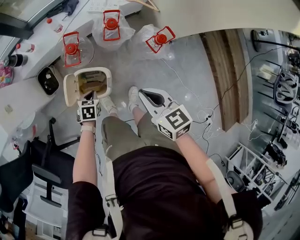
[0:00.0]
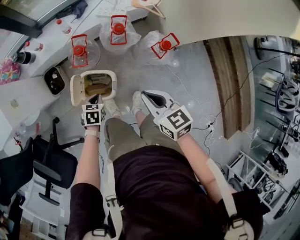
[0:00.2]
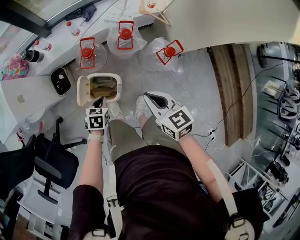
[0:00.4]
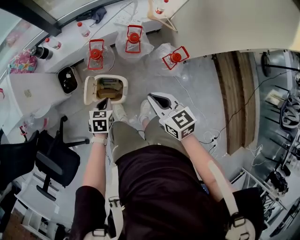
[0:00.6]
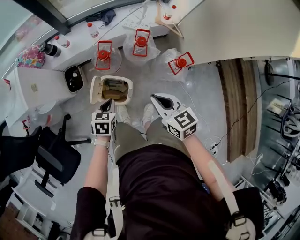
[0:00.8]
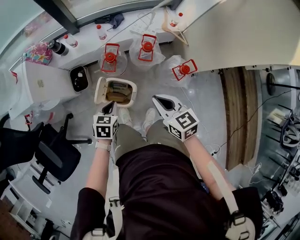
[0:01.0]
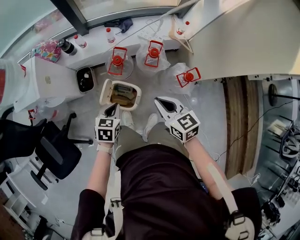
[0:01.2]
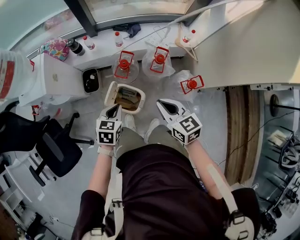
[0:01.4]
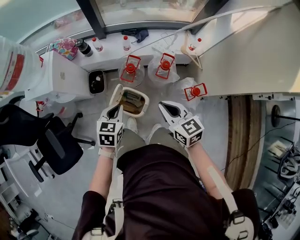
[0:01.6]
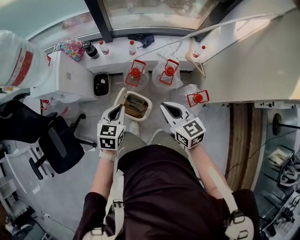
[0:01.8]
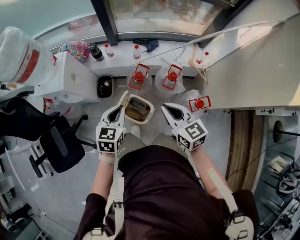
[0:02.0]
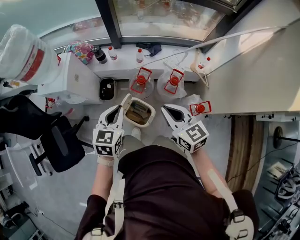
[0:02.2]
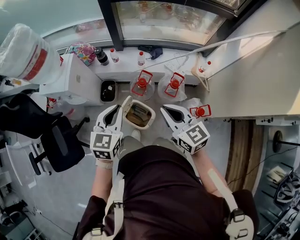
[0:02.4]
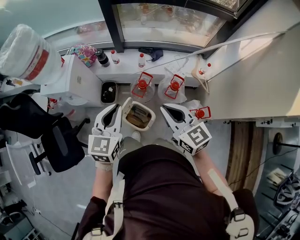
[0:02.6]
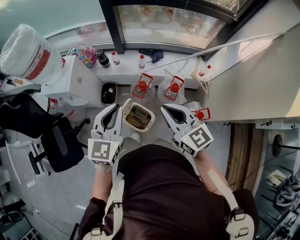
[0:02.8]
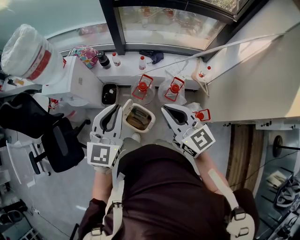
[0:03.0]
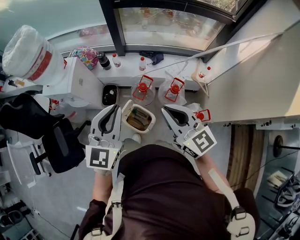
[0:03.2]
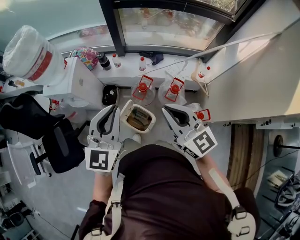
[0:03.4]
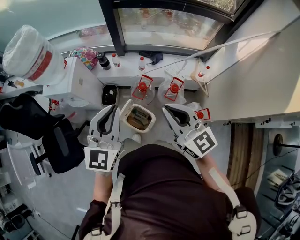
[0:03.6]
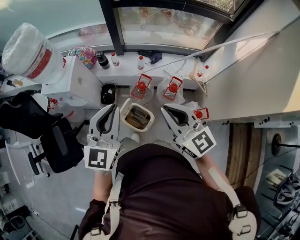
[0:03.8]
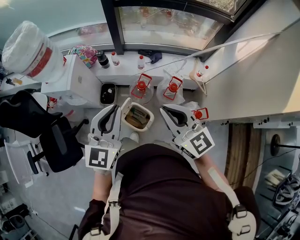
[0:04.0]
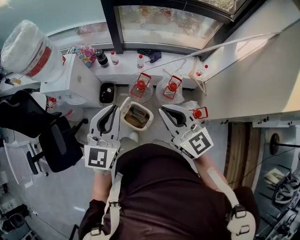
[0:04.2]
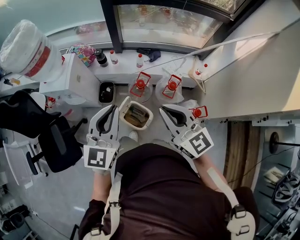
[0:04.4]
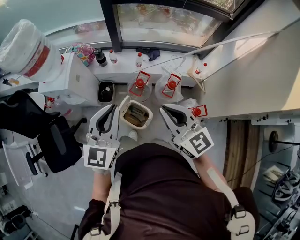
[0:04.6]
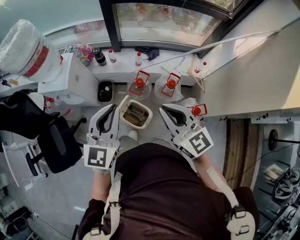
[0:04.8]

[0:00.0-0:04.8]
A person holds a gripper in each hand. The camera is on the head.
0:00.0 to 0:01.6: The left gripper shifts roughly 30 cm upward, and swivels roughly 30 degrees, while the right gripper shifts about 10 cm upward, and rotates roughly 20 degrees.
0:01.6 to 0:03.2: The two grippers go about 20 cm upward. The right gripper swivels some 30 degrees; the left gripper angles its fingers upward, by about 40 degrees.
0:03.2 to 0:04.8: The grippers move only a little.

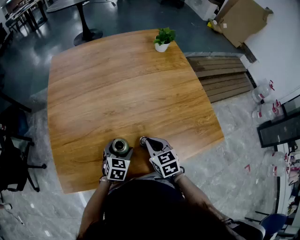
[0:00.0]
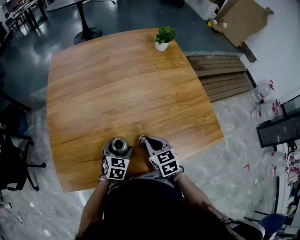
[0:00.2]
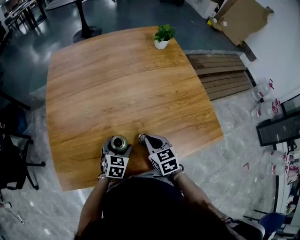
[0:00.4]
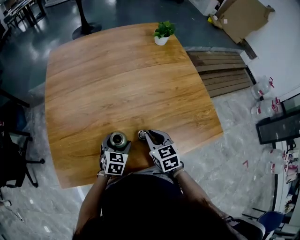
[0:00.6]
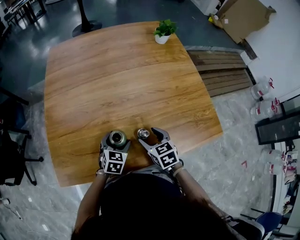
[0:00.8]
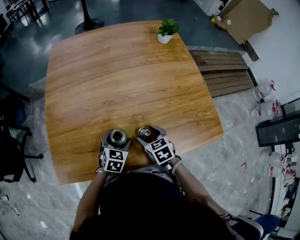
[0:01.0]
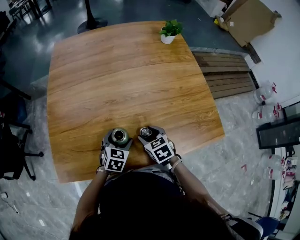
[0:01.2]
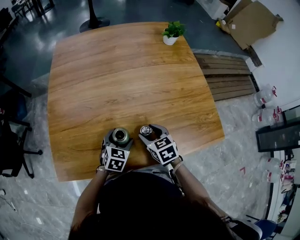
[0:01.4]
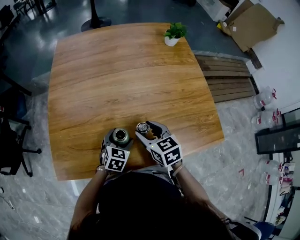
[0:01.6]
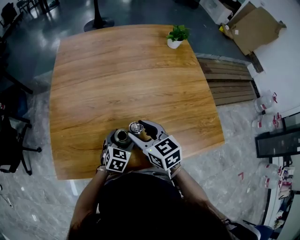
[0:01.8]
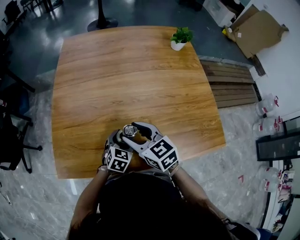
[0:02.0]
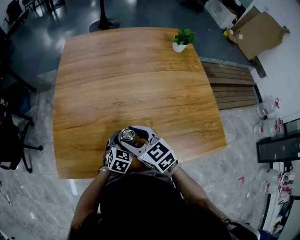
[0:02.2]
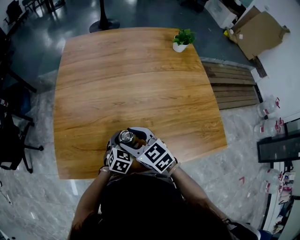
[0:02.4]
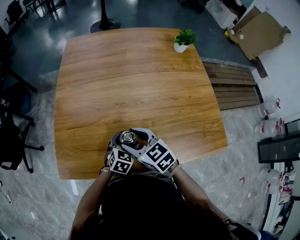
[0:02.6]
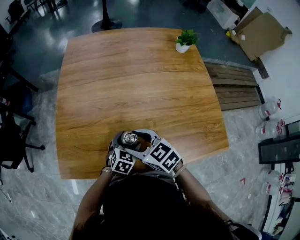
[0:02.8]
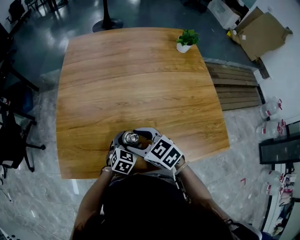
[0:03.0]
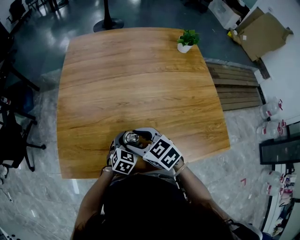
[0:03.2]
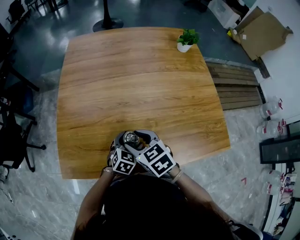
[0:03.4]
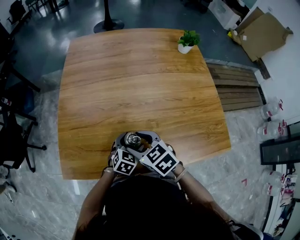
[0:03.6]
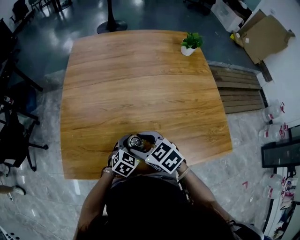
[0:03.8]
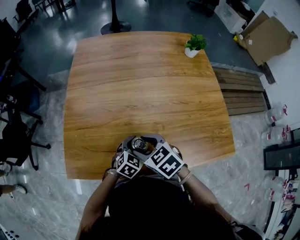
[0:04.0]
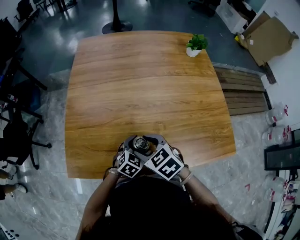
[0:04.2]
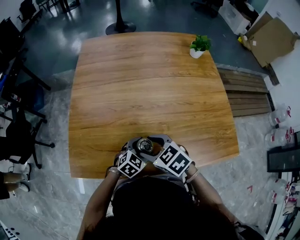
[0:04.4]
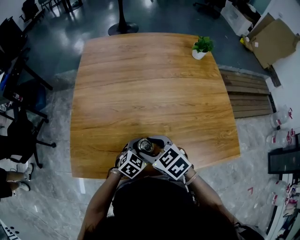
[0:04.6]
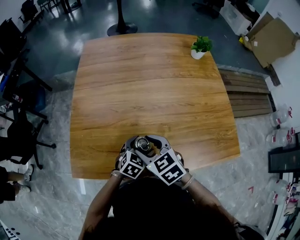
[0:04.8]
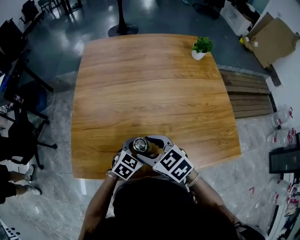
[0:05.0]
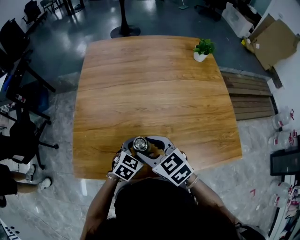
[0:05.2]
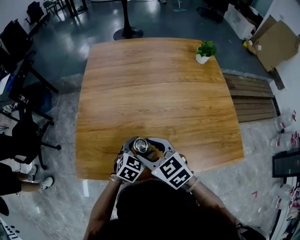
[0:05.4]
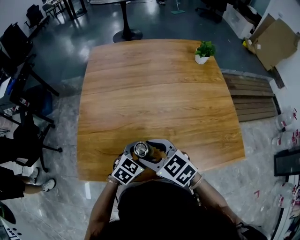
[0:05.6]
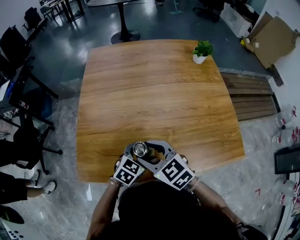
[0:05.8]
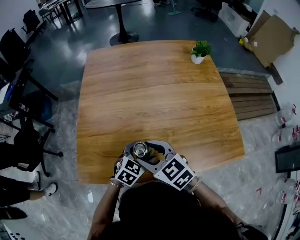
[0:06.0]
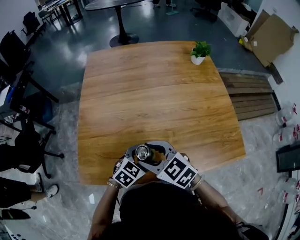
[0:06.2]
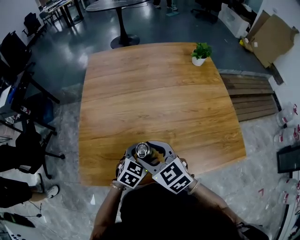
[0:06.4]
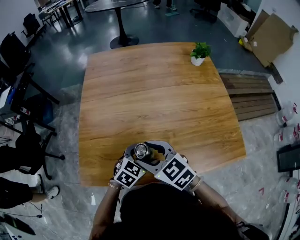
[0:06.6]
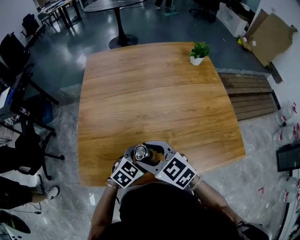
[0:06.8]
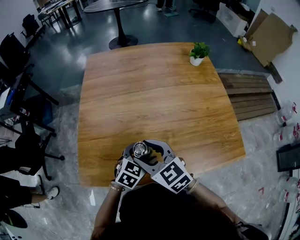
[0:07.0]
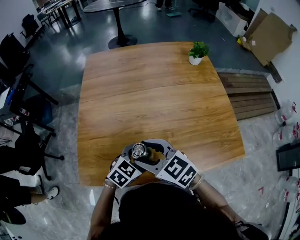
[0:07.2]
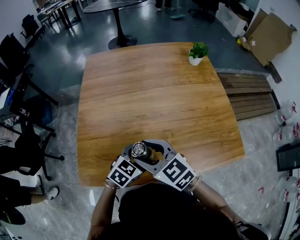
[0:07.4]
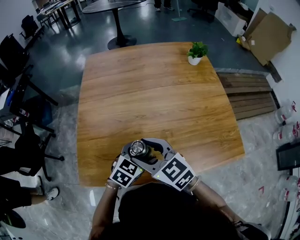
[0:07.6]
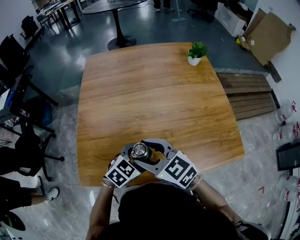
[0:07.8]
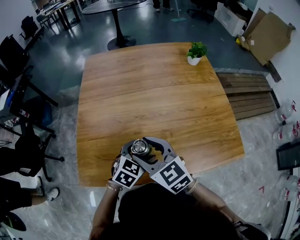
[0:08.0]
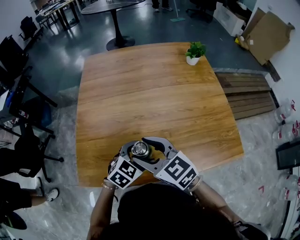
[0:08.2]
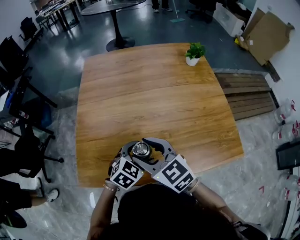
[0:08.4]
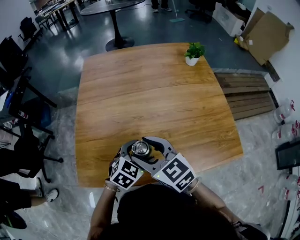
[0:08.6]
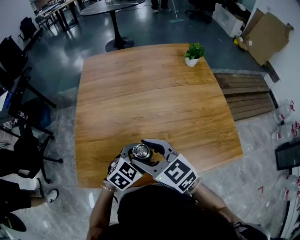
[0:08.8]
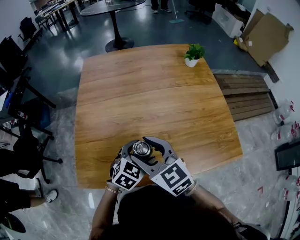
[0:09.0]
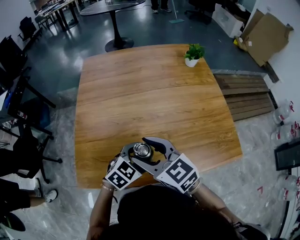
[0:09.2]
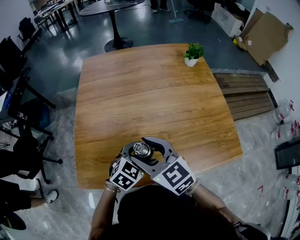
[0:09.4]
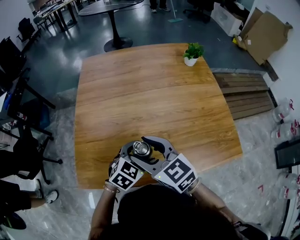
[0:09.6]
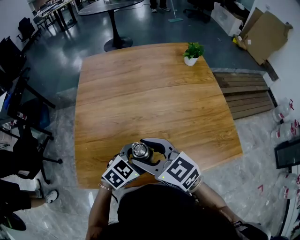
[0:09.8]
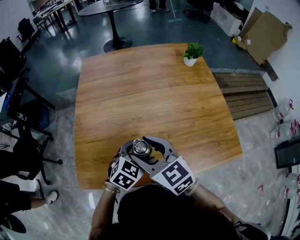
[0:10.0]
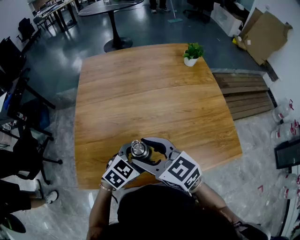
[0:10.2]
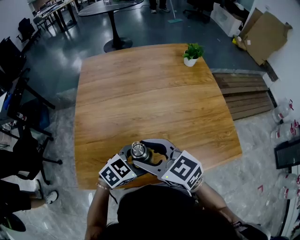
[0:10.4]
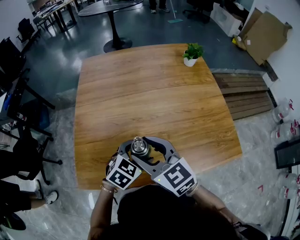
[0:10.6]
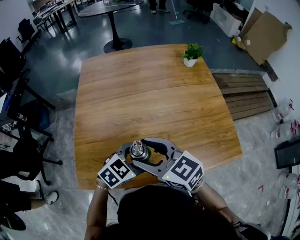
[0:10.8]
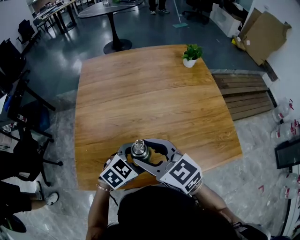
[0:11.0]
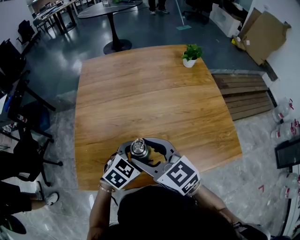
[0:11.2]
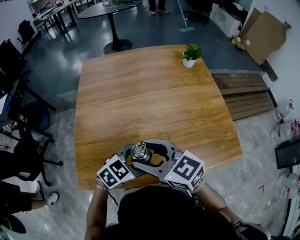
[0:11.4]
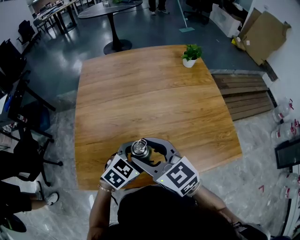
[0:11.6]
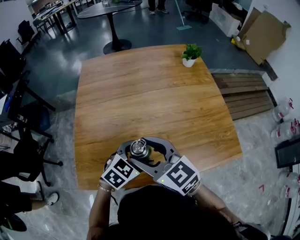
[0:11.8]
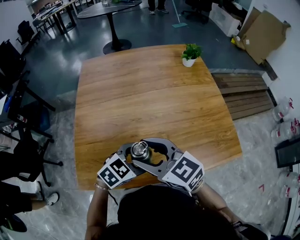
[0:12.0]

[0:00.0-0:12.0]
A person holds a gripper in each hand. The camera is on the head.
0:00.0 to 0:01.6: The right gripper moves some 5 cm, and opens its fingers.
0:01.6 to 0:03.0: The right gripper moves to the left, roughly 10 cm, and changes its angle by some 30 degrees.
0:03.0 to 0:04.4: The grippers make only small movements.
0:04.4 to 0:06.0: The grippers both shift upward by roughly 5 cm.
0:06.0 to 0:07.6: The grippers move only a little.
0:07.6 to 0:09.0: There are only small adjustments of the grippers.
0:09.0 to 0:10.4: The left gripper rotates some 20 degrees.
0:10.4 to 0:12.0: The grippers move only a little.

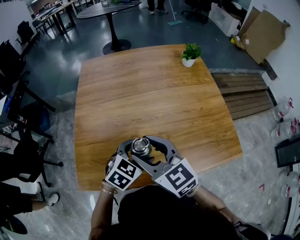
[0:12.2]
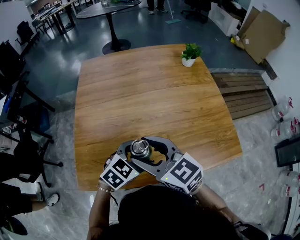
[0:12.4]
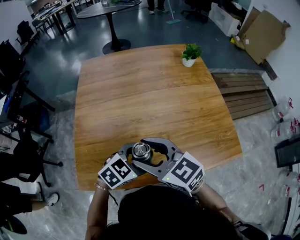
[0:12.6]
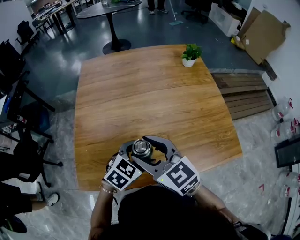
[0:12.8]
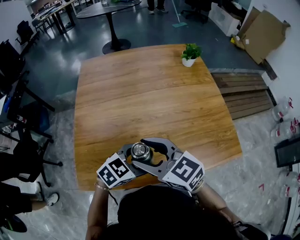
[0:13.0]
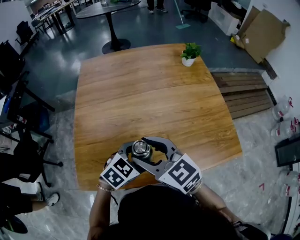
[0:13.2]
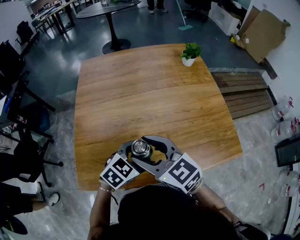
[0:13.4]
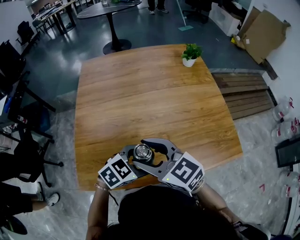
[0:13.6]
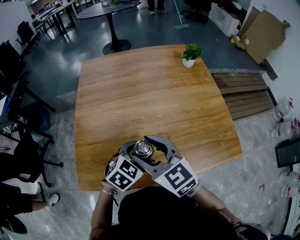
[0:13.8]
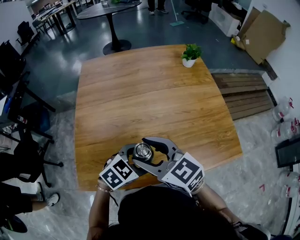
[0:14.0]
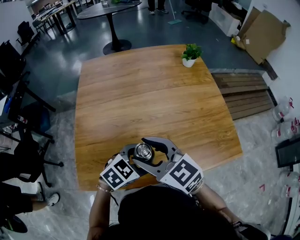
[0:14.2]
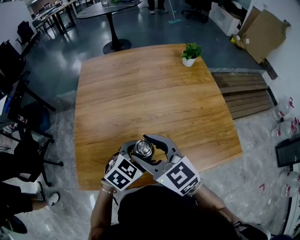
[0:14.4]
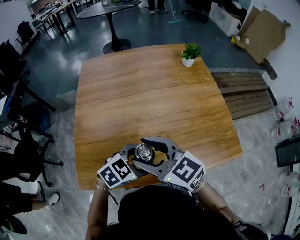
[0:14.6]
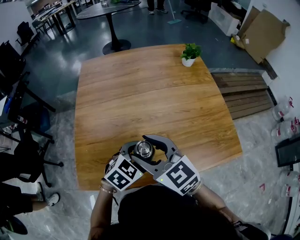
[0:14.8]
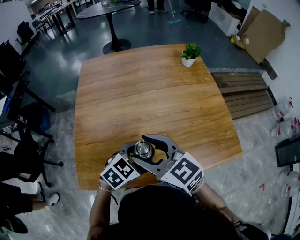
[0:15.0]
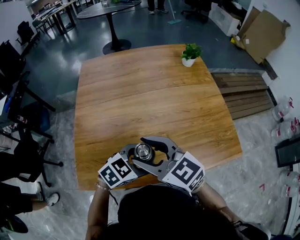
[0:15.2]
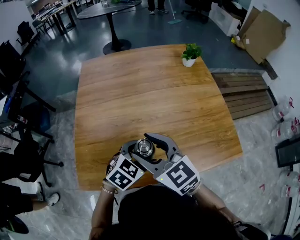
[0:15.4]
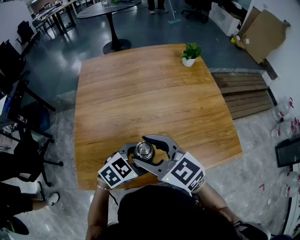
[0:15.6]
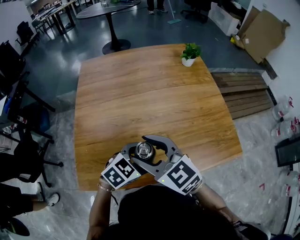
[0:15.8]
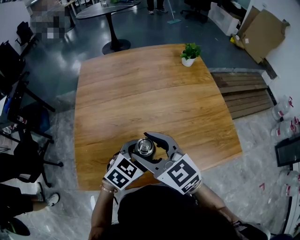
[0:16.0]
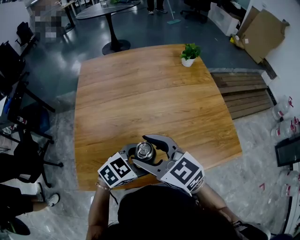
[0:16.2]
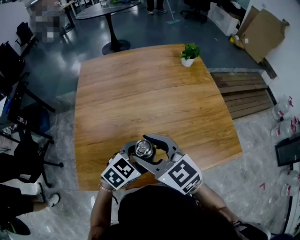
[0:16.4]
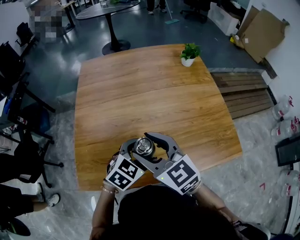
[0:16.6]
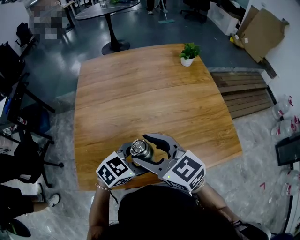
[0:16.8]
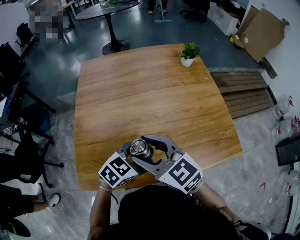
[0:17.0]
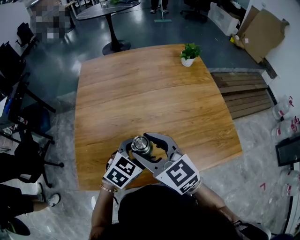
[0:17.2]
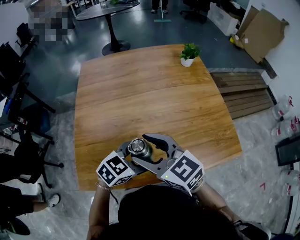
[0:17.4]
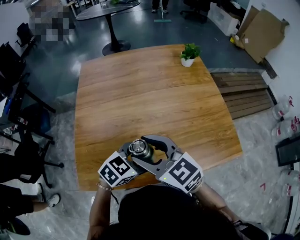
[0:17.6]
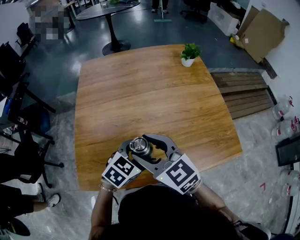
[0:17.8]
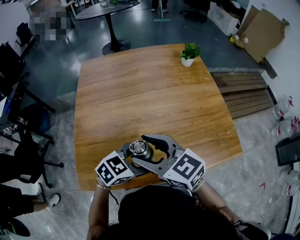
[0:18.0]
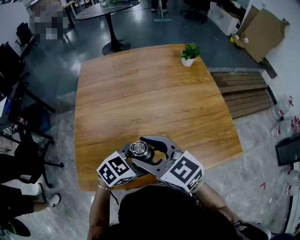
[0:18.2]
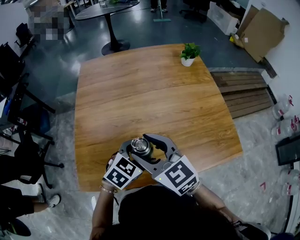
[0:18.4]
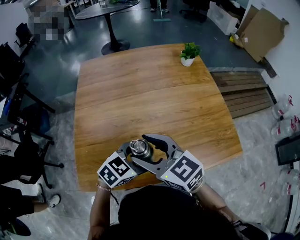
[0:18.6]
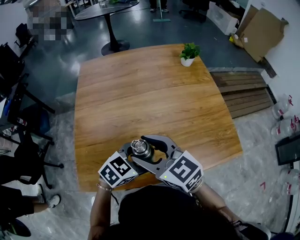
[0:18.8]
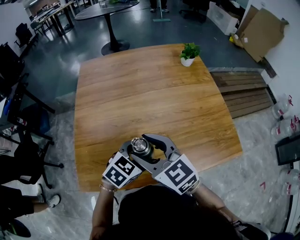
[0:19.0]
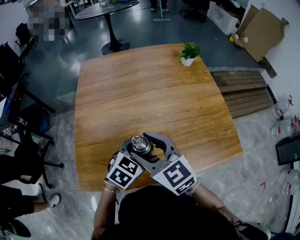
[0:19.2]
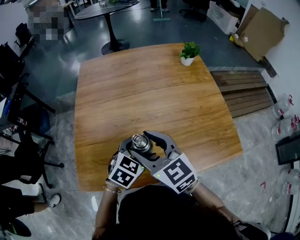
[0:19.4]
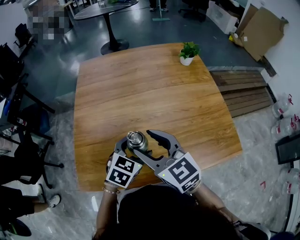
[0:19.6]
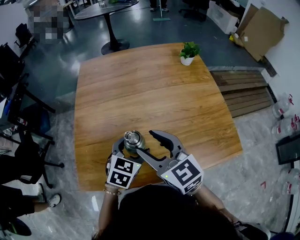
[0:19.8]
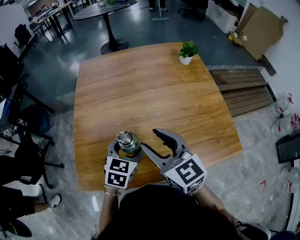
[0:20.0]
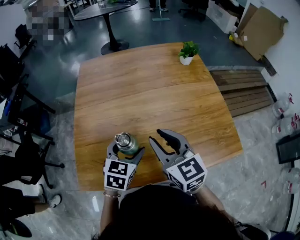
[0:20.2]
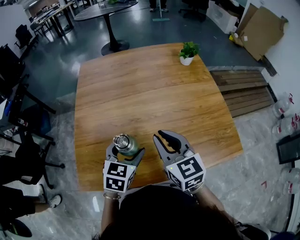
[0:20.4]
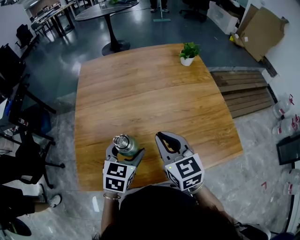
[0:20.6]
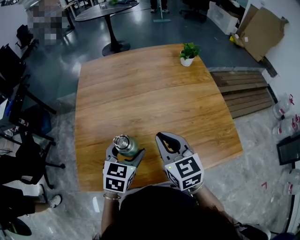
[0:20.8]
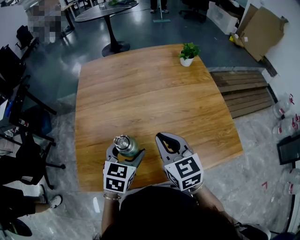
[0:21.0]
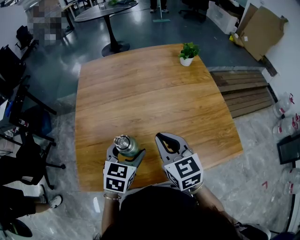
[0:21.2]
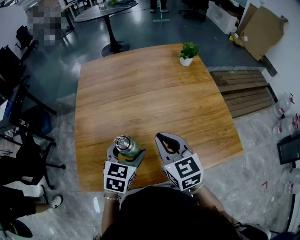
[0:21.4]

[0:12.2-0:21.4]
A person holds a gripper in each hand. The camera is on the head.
0:12.2 to 0:15.2: The grippers move only a little.
0:15.2 to 0:18.4: The grippers make only small movements.
0:18.4 to 0:19.8: The grippers move only a little.
0:19.8 to 0:21.4: The right gripper moves to the right, roughly 5 cm, and closes up.
